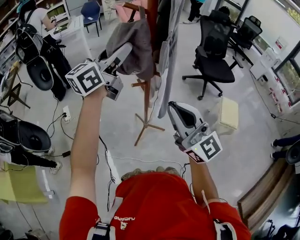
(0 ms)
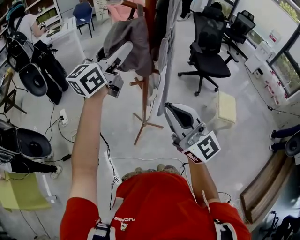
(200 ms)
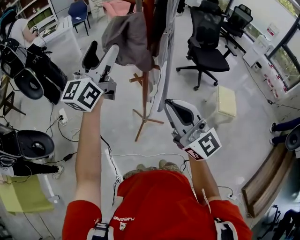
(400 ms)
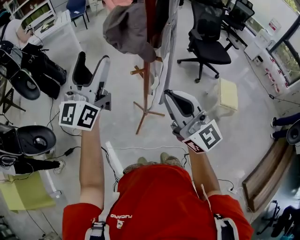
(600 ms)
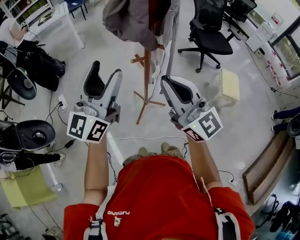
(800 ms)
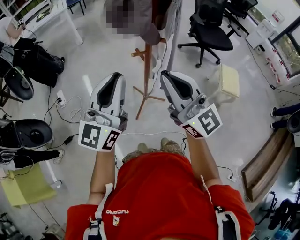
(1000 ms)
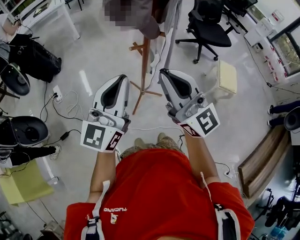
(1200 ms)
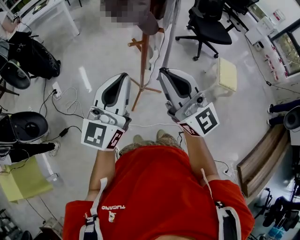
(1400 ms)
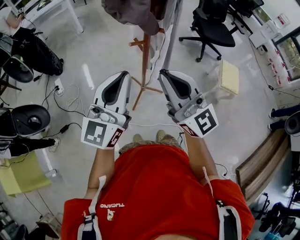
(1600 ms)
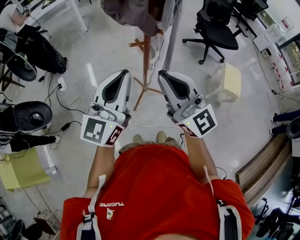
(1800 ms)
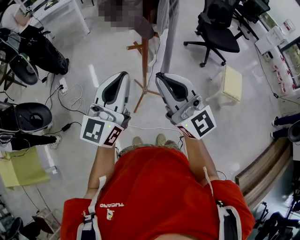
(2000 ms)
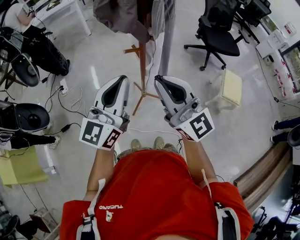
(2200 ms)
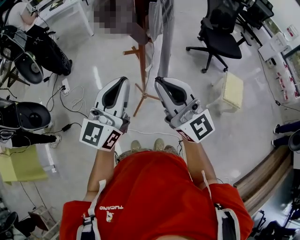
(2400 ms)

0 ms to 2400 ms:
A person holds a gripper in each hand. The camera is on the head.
0 ms to 1200 ms: The left gripper shifts roughly 20 cm backward and downward, and closes; the right gripper travels to the left by approximately 5 cm.
1200 ms to 2400 ms: The grippers both shift to the right by about 5 cm.

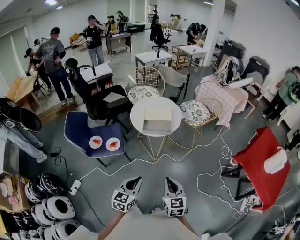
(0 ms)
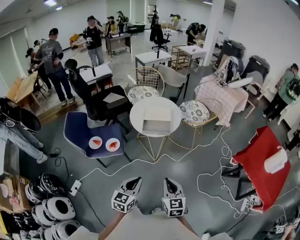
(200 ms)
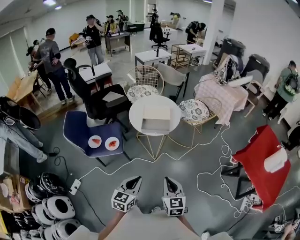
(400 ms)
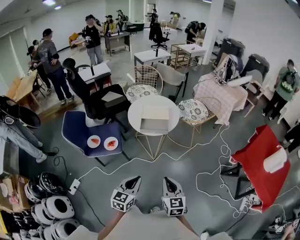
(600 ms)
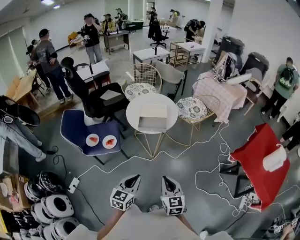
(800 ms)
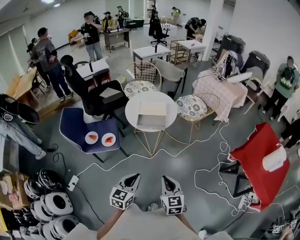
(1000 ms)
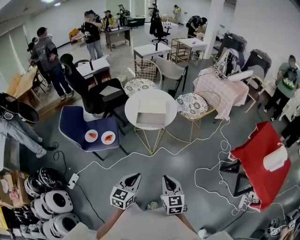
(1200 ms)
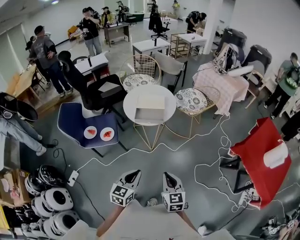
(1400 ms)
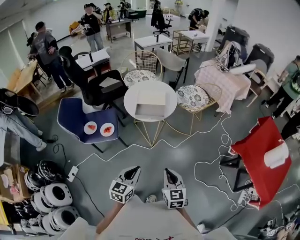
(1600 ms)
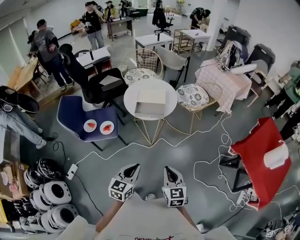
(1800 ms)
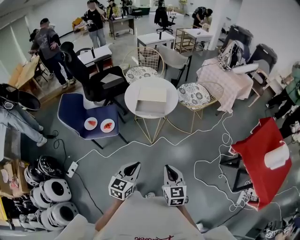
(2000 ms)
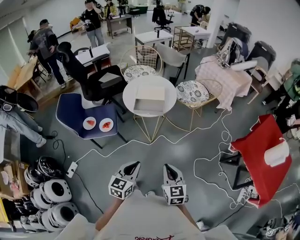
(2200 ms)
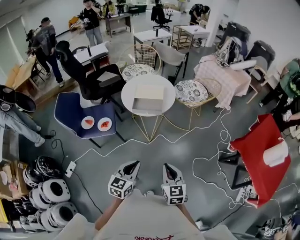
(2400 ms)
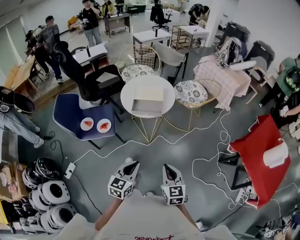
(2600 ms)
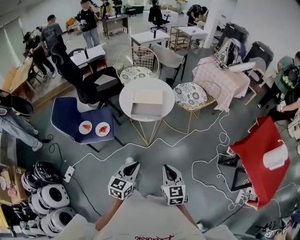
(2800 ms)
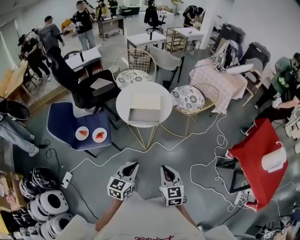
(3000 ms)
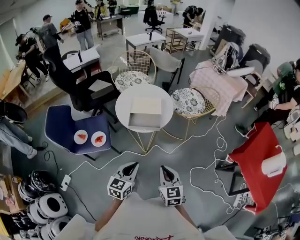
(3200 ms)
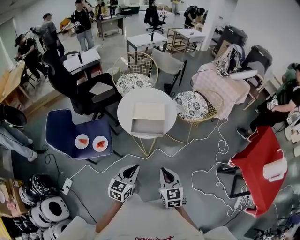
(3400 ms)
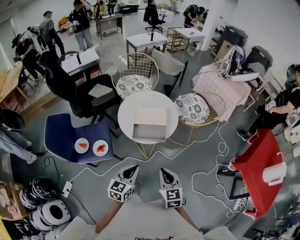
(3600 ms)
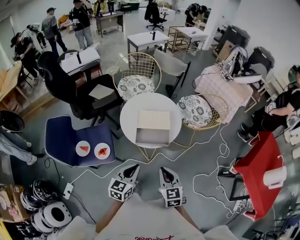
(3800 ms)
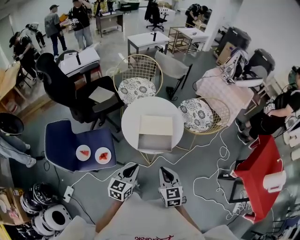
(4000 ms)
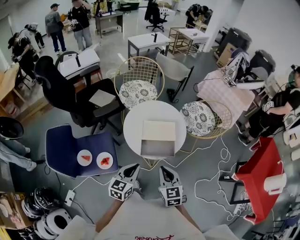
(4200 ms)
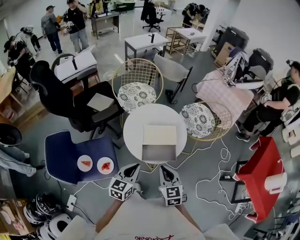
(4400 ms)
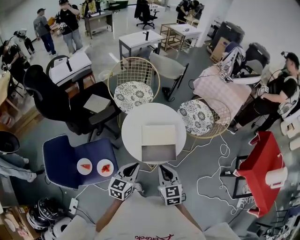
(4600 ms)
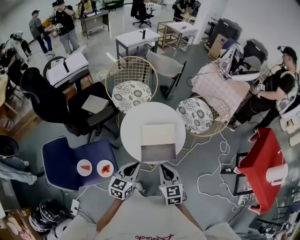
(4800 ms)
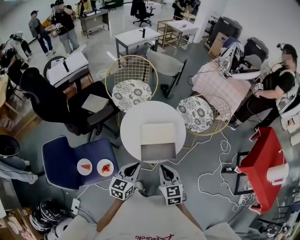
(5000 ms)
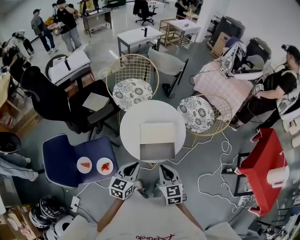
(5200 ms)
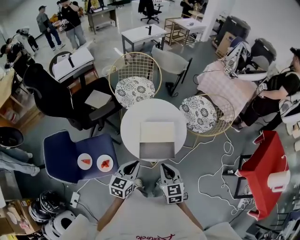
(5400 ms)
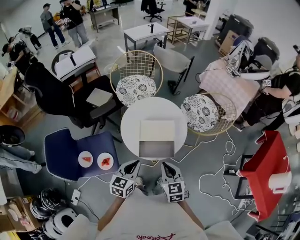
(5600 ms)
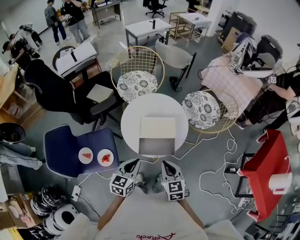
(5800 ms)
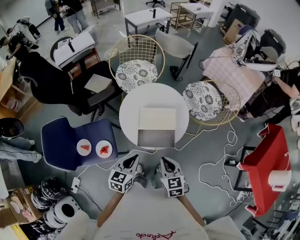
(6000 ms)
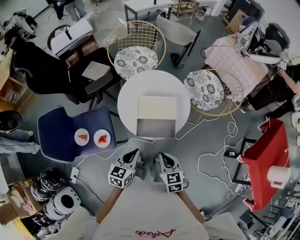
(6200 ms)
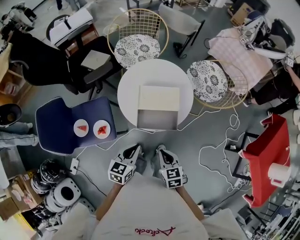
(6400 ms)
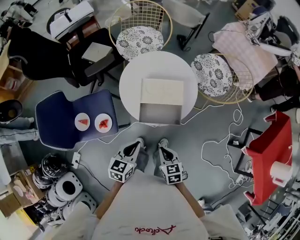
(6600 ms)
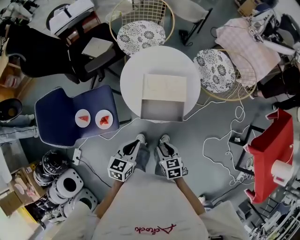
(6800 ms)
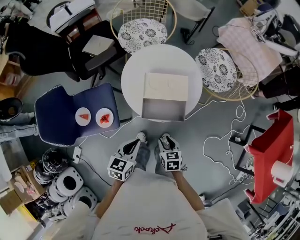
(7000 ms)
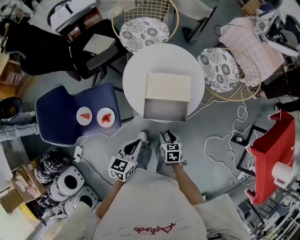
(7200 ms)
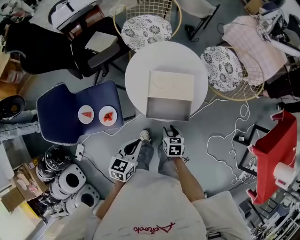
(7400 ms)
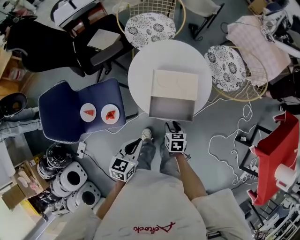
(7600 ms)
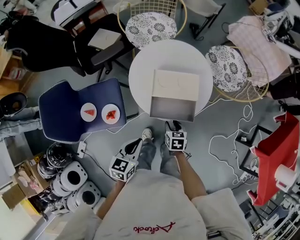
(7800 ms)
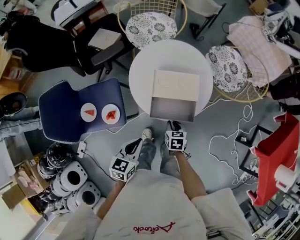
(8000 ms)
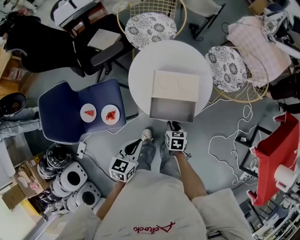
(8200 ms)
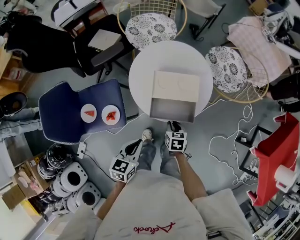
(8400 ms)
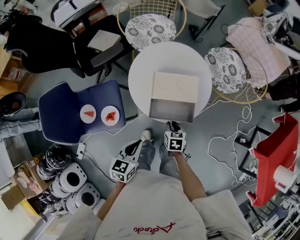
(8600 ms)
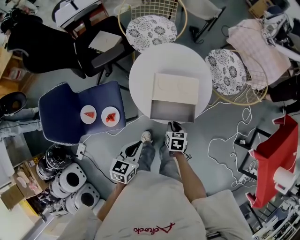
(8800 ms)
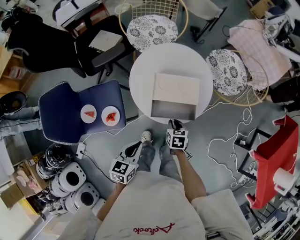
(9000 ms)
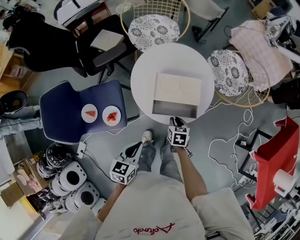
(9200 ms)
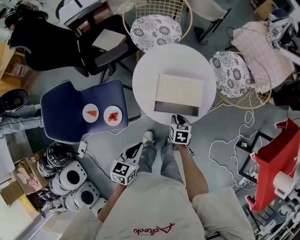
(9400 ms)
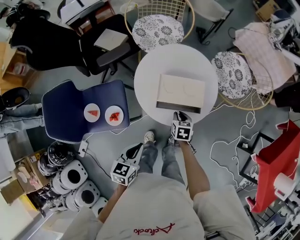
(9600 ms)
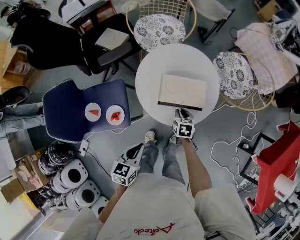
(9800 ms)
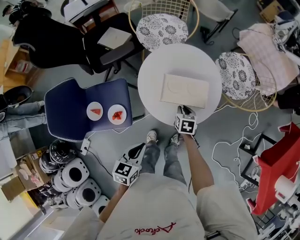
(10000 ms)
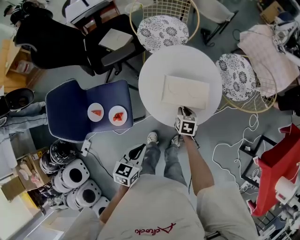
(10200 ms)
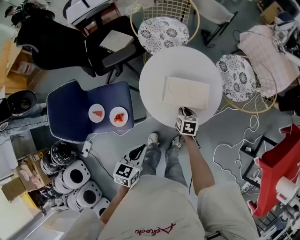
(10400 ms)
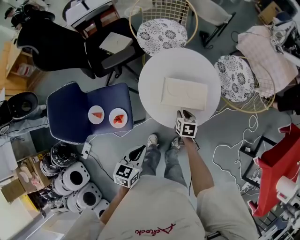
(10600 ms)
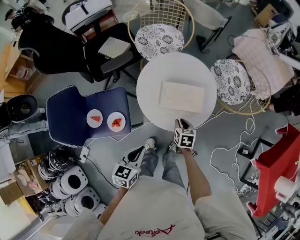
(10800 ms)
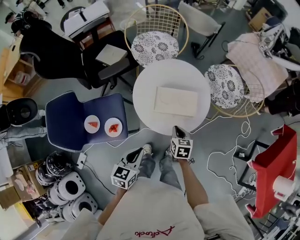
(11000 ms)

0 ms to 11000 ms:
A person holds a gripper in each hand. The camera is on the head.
0 ms to 1600 ms: Both grippers move to the right, about 5 cm.
1600 ms to 3200 ms: The grippers both shift forward by roughly 15 cm.
3200 ms to 4800 ms: Both grippers travel together forward and to the left, about 30 cm.
4800 ms to 6200 ms: The left gripper shifts roughly 5 cm to the right and downward. The right gripper travels downward and to the right by approximately 10 cm.
6200 ms to 7800 ms: The right gripper heads downward and forward, covering some 20 cm, rotates roughly 20 degrees, and opens up, while the left gripper moves about 5 cm.
7800 ms to 9400 ms: The right gripper shifts about 5 cm forward, and closes.
9400 ms to 11000 ms: The right gripper goes about 5 cm upward.

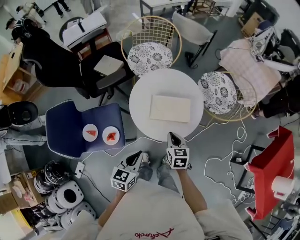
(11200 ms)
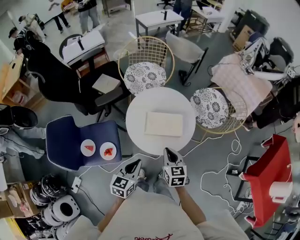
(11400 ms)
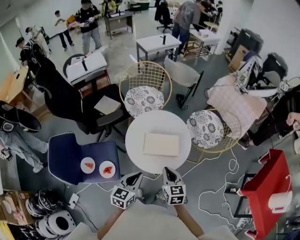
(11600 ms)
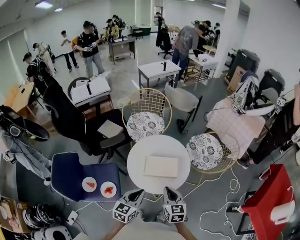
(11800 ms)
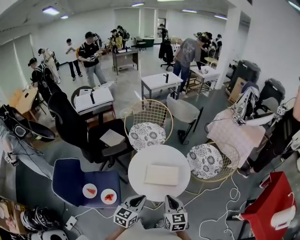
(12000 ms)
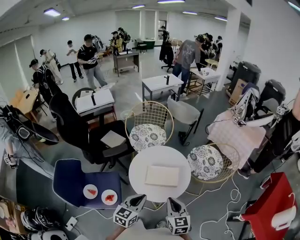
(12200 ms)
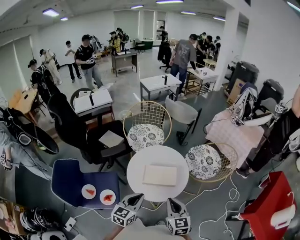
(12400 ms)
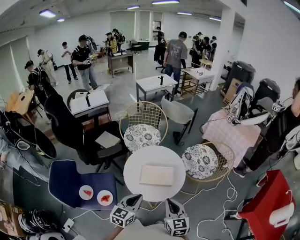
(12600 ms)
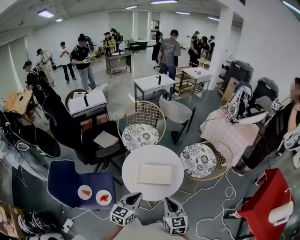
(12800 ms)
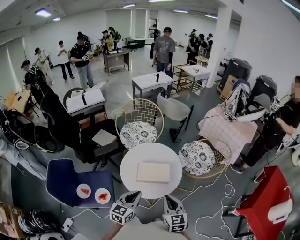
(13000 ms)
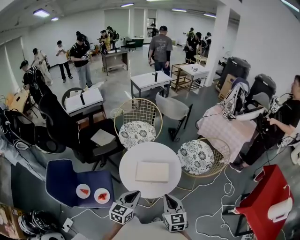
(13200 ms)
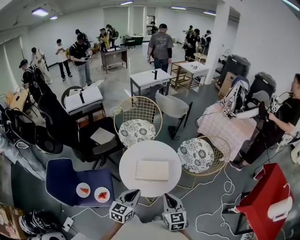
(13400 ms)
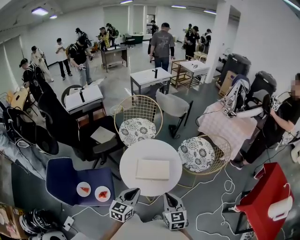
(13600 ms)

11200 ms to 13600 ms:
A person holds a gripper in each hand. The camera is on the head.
11200 ms to 12400 ms: The left gripper travels upward by some 10 cm. The right gripper travels upward and backward by roughly 20 cm, and swivels about 20 degrees.
12400 ms to 13600 ms: The grippers make only small movements.

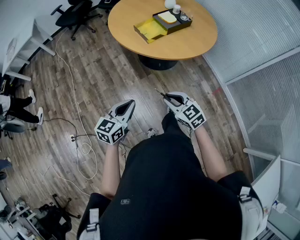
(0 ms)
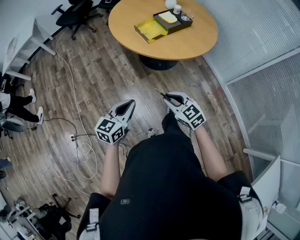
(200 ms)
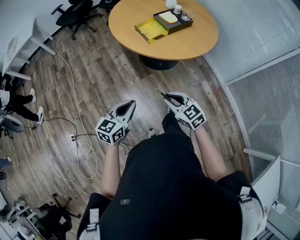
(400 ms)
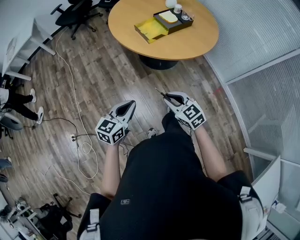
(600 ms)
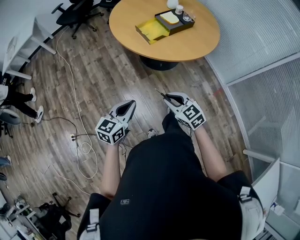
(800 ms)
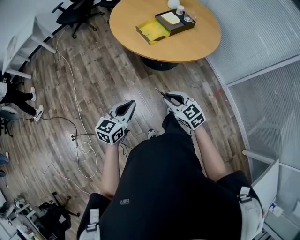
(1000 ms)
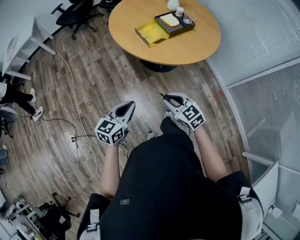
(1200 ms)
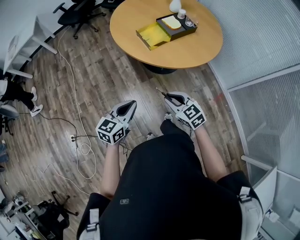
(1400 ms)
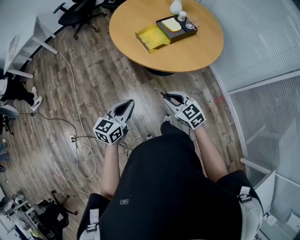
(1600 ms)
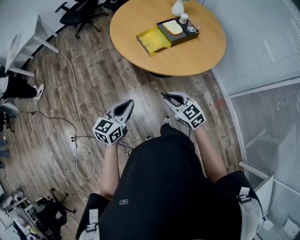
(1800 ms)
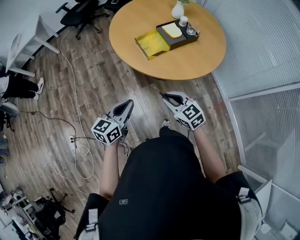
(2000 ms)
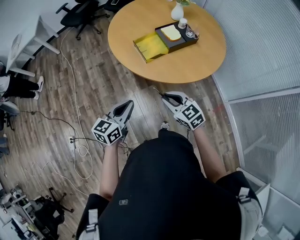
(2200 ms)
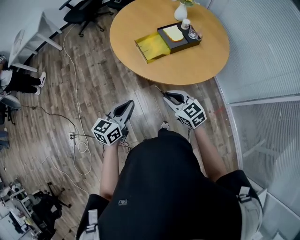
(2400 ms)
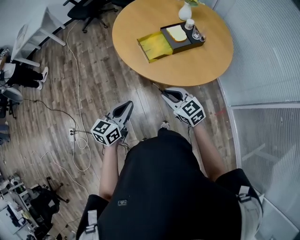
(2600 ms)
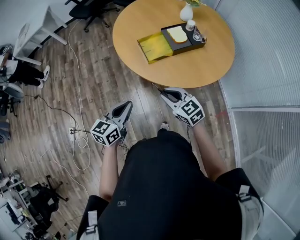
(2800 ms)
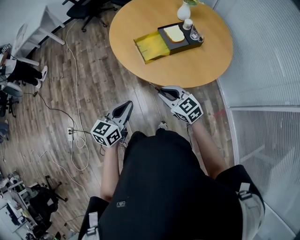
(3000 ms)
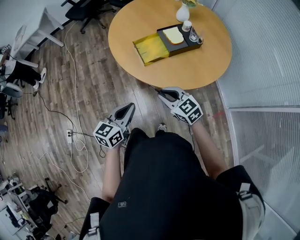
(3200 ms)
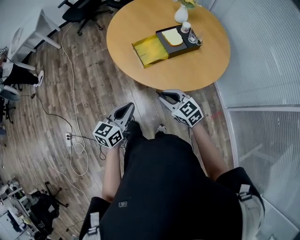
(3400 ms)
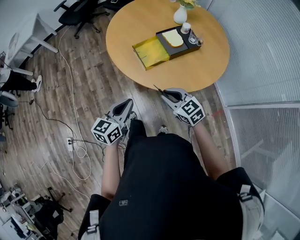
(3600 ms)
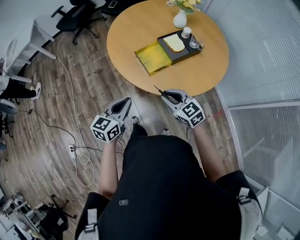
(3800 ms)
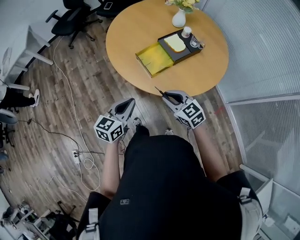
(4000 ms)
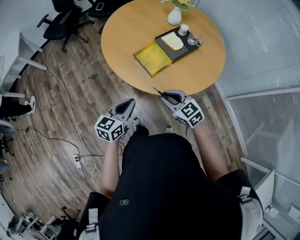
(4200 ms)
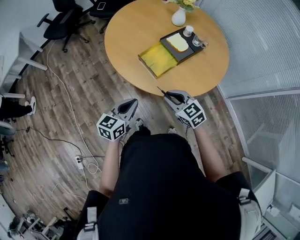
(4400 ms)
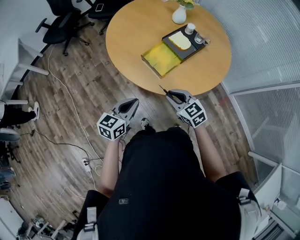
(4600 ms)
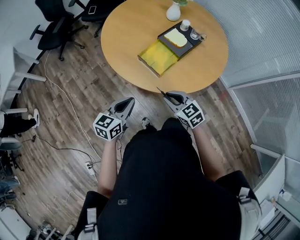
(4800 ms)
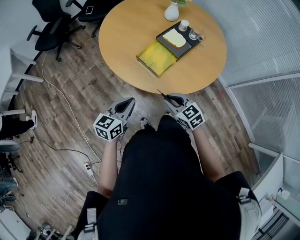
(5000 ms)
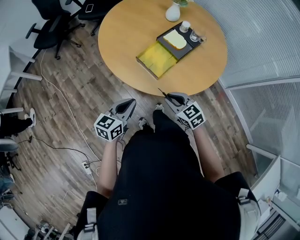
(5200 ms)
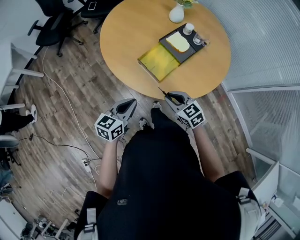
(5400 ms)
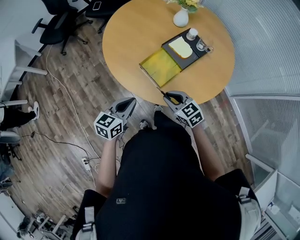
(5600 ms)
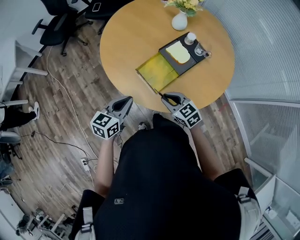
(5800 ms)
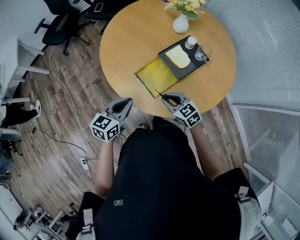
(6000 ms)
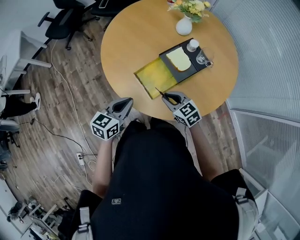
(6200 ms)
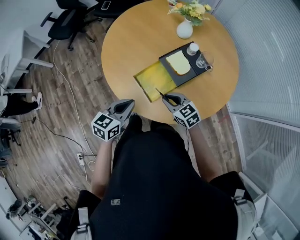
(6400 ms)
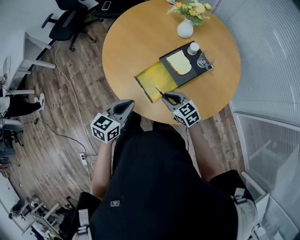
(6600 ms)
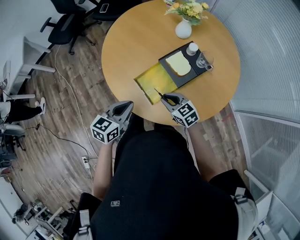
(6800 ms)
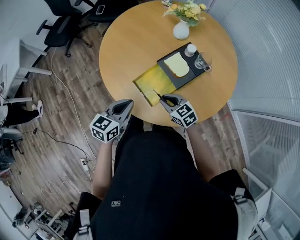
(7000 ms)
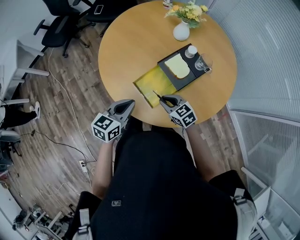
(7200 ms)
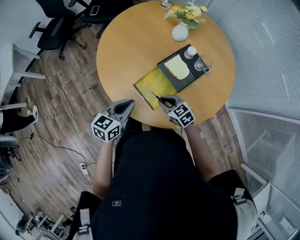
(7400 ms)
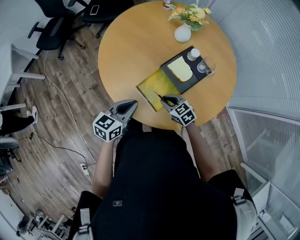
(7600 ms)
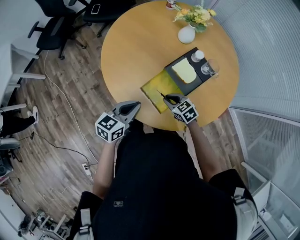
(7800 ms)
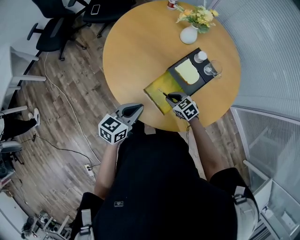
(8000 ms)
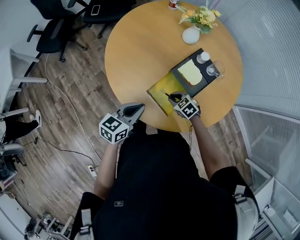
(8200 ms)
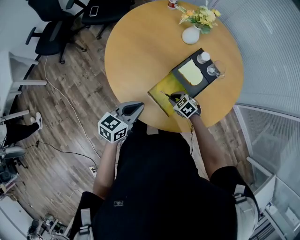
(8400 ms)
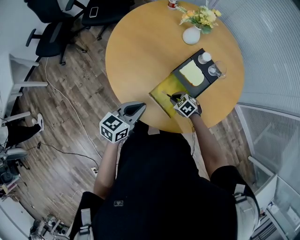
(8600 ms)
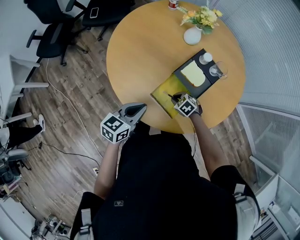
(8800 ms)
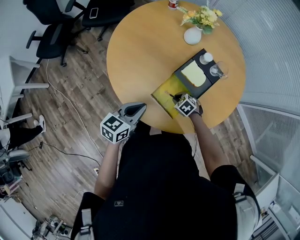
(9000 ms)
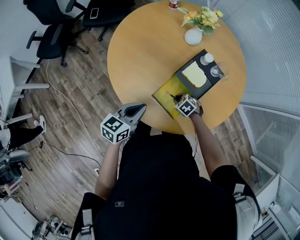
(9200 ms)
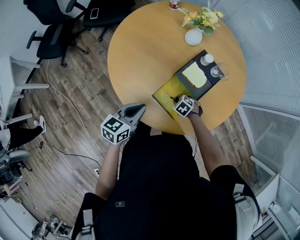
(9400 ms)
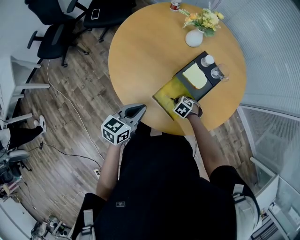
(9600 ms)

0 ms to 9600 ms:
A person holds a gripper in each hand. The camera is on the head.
0 ms to 1600 ms: The grippers both shift forward by some 10 cm.
1600 ms to 3200 ms: The right gripper travels forward and to the right by some 15 cm, while the left gripper travels to the right and forward by some 10 cm.
3200 ms to 4800 ms: The right gripper moves to the left and forward, roughly 15 cm, and changes its angle by approximately 30 degrees. Meanwhile the left gripper is displaced forward and to the left by roughly 25 cm, and rotates about 30 degrees.
4800 ms to 6400 ms: The grippers both shift forward and to the right by about 20 cm.
6400 ms to 8000 ms: The left gripper moves forward, some 10 cm; the right gripper heads downward and forward, covering some 10 cm.
8000 ms to 9600 ms: The right gripper is displaced downward by approximately 10 cm, and rotates about 30 degrees. Meanwhile the left gripper moves about 5 cm.
